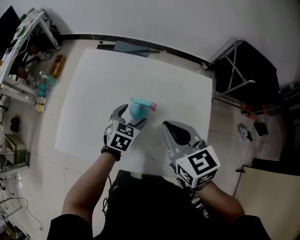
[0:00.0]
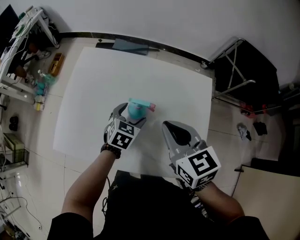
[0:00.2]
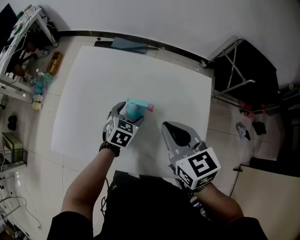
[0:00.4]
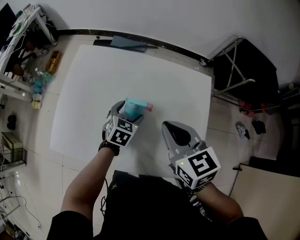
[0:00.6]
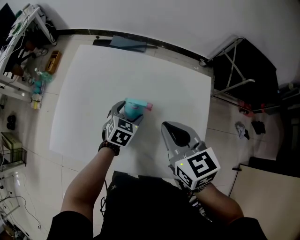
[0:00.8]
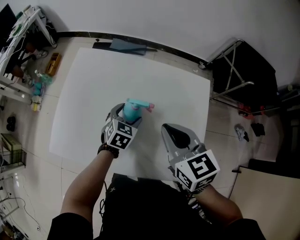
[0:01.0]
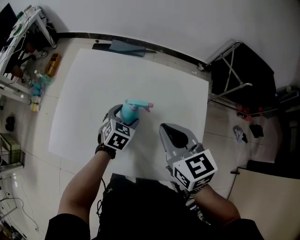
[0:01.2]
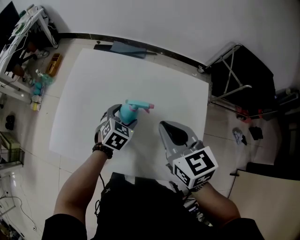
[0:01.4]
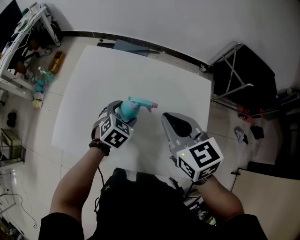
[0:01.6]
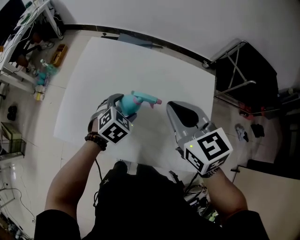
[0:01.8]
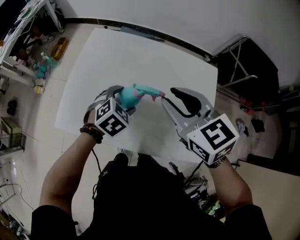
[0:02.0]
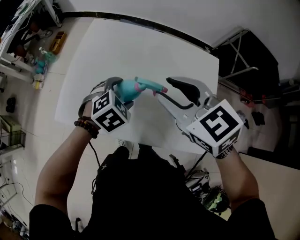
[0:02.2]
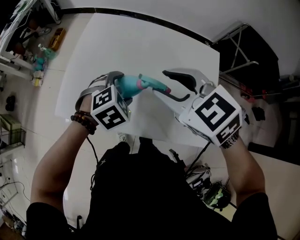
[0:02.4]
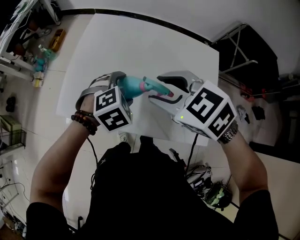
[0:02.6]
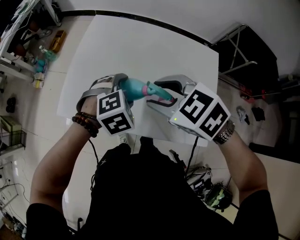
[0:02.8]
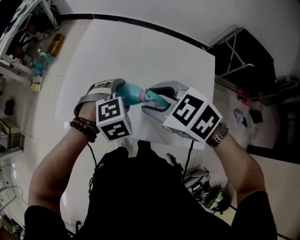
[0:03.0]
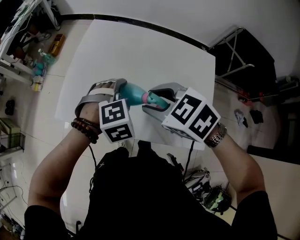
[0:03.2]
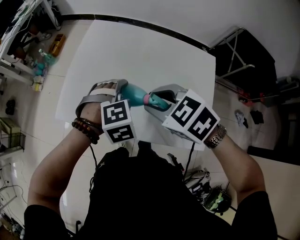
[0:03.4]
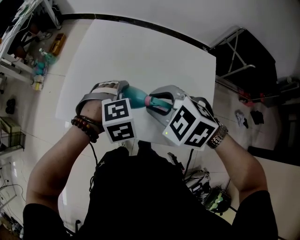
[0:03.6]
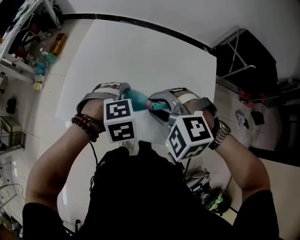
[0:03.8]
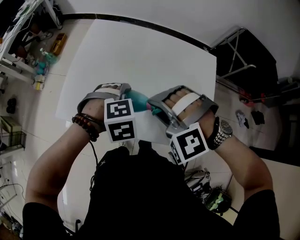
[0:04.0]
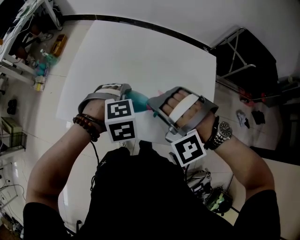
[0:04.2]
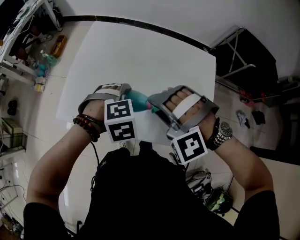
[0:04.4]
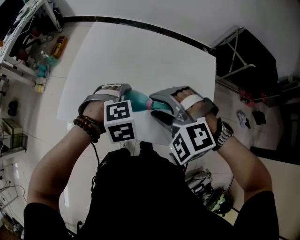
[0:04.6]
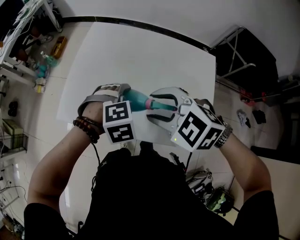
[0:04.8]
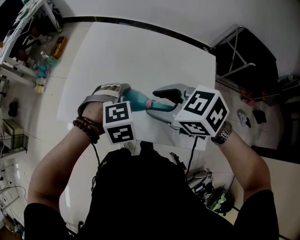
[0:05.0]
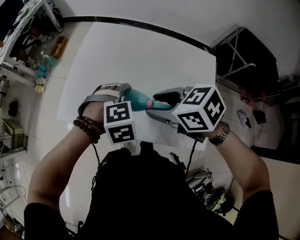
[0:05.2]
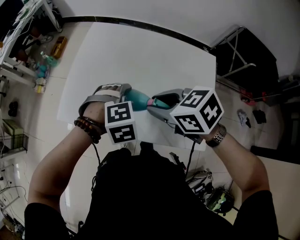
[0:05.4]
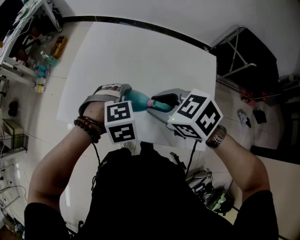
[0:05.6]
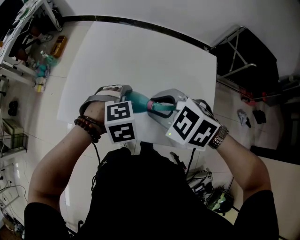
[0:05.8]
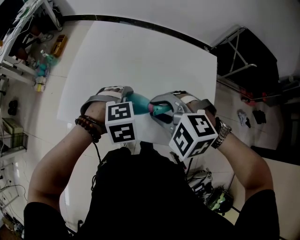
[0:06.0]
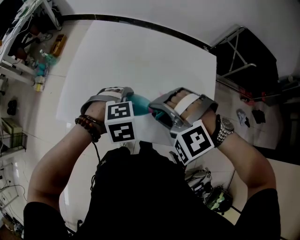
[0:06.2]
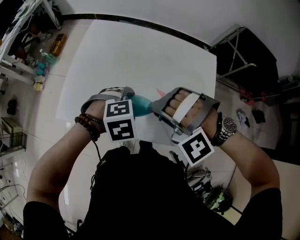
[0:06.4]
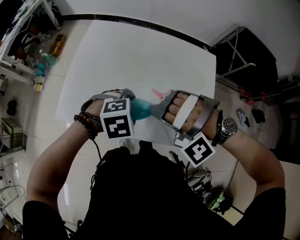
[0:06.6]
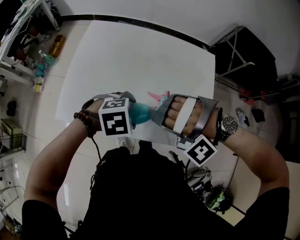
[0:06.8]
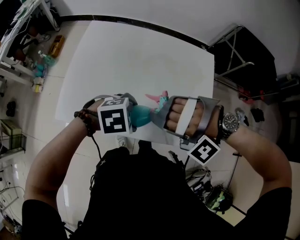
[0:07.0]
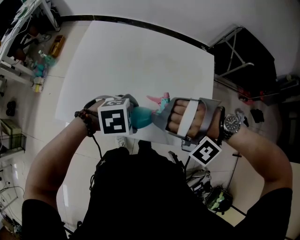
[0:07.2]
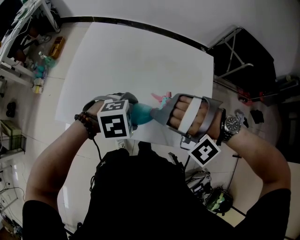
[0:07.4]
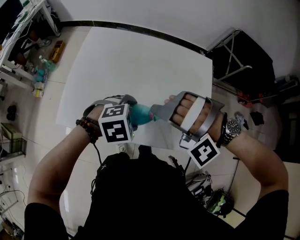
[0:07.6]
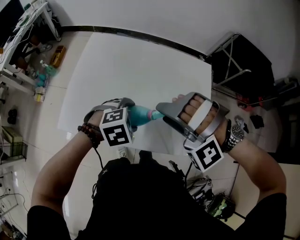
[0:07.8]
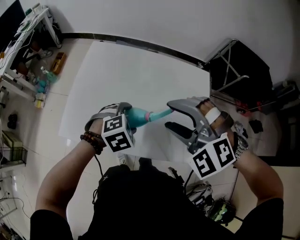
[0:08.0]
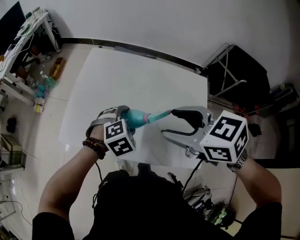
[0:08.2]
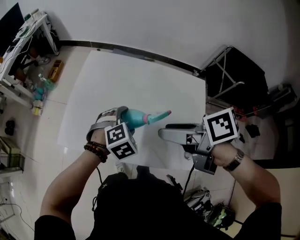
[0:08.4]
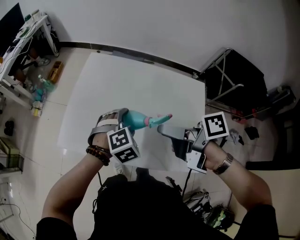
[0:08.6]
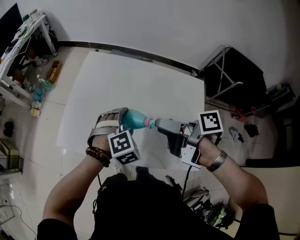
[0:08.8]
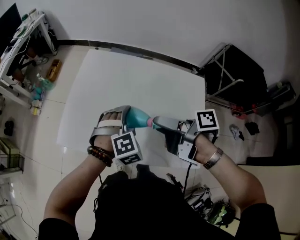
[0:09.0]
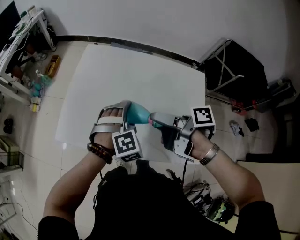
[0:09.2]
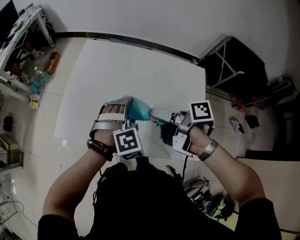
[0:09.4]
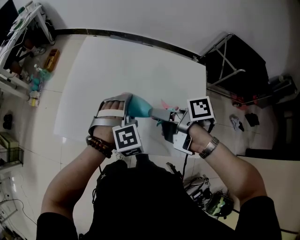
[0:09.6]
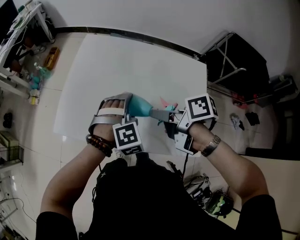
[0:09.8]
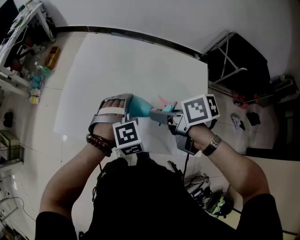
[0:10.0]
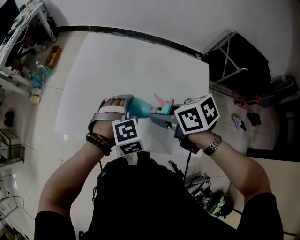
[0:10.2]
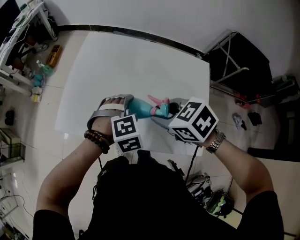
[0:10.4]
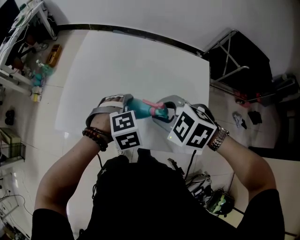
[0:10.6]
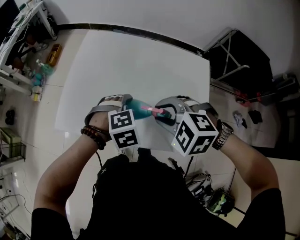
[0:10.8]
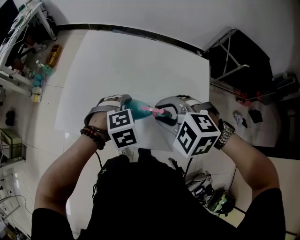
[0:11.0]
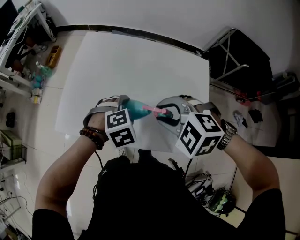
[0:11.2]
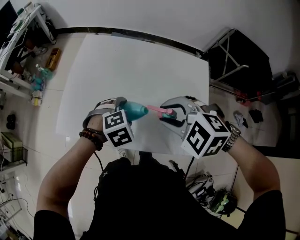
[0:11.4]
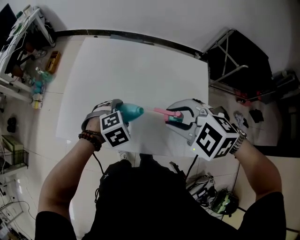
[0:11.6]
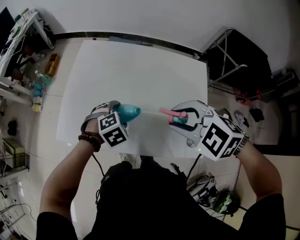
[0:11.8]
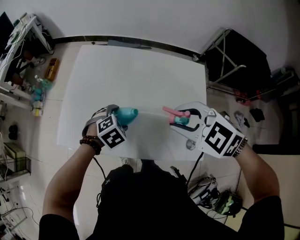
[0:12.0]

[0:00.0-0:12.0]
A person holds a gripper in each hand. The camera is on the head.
0:00.0 to 0:01.6: There are only small adjustments of the grippers.
0:01.6 to 0:03.0: The left gripper goes some 10 cm backward, to the left and upward, and swivels some 30 degrees. Meanwhile the right gripper heads to the left and backward, covering roughly 15 cm, changes its angle by roughly 40 degrees, and opens its fingers.
0:03.0 to 0:04.4: The right gripper rotates around the line of its fingers by some 70 degrees, counterclockwise from behind.
0:04.4 to 0:06.0: The right gripper changes its angle by some 40 degrees.
0:06.0 to 0:07.6: The right gripper twists roughly 50 degrees counterclockwise, seen from behind, and opens.
0:07.6 to 0:09.0: The left gripper shifts by some 10 cm, and swivels approximately 40 degrees. Meanwhile the right gripper reaches some 10 cm upward, then returns, and rotates about 170 degrees.
0:09.0 to 0:10.4: The right gripper rolls counterclockwise, seen from behind, by some 80 degrees, and closes.
0:10.4 to 0:12.0: The right gripper shifts roughly 10 cm upward and to the right, and rotates some 30 degrees. The left gripper goes some 5 cm downward.

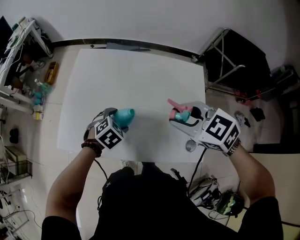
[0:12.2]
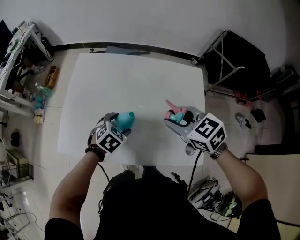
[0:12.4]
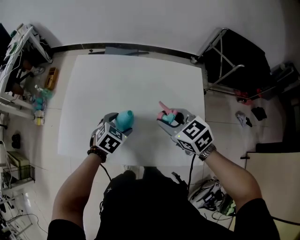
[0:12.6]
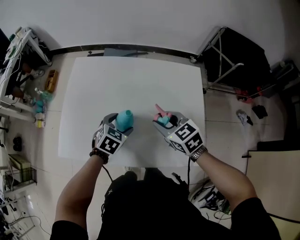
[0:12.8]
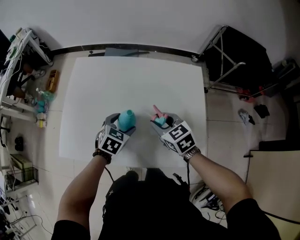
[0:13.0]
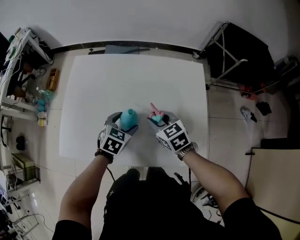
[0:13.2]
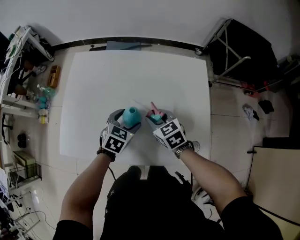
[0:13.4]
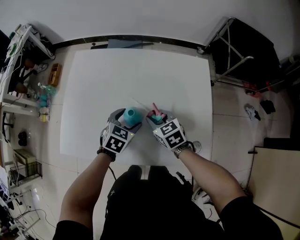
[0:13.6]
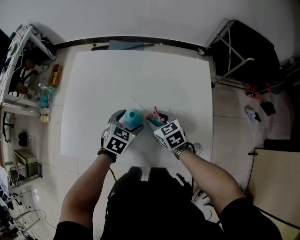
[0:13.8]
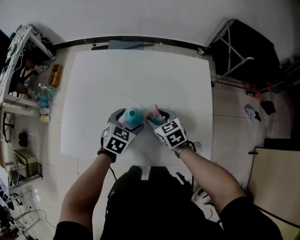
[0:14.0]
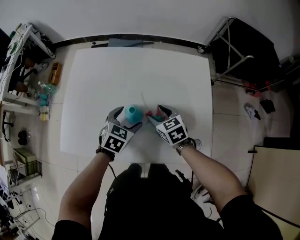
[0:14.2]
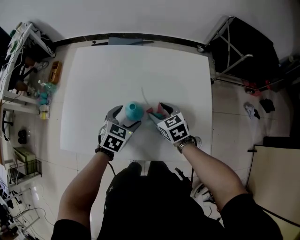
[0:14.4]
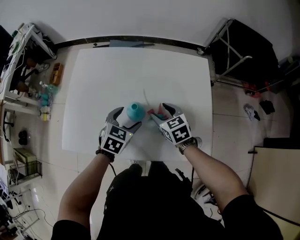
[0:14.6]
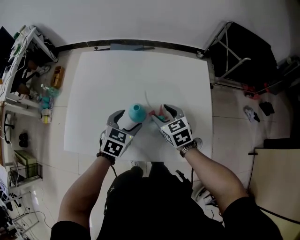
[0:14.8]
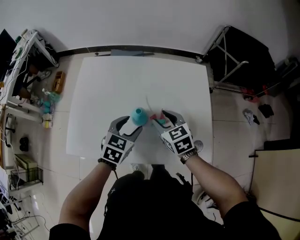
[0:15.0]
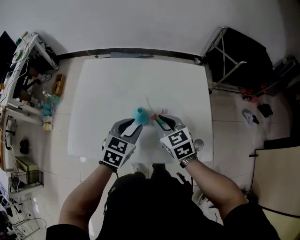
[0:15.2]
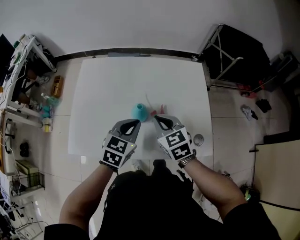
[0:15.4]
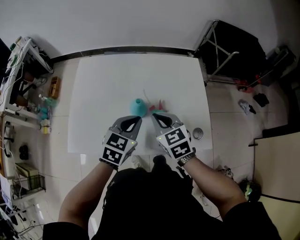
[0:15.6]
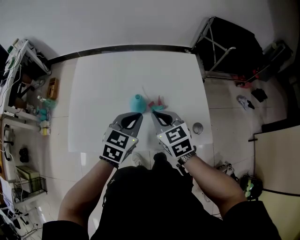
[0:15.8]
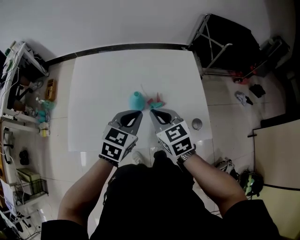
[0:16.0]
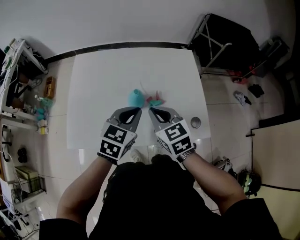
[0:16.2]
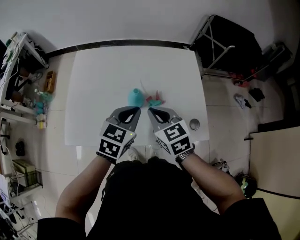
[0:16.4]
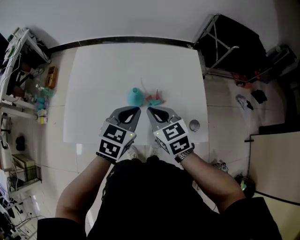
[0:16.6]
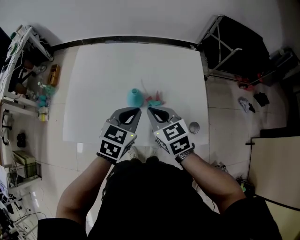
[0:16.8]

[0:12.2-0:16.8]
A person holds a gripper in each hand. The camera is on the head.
0:12.2 to 0:13.8: The left gripper shifts by some 5 cm, and changes its angle by about 20 degrees, while the right gripper is displaced downward by about 20 cm, and turns by some 30 degrees.
0:13.8 to 0:15.2: Both grippers move upward, about 10 cm. The right gripper opens, then closes again, while the left gripper closes its fingers.
0:15.2 to 0:16.8: The left gripper shifts by approximately 5 cm. Meanwhile the right gripper changes place by some 5 cm.

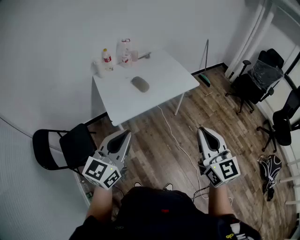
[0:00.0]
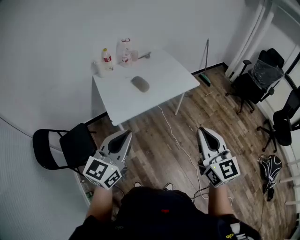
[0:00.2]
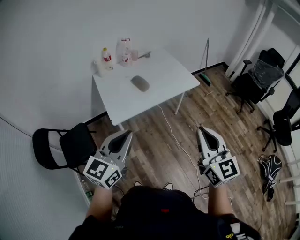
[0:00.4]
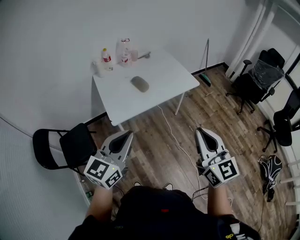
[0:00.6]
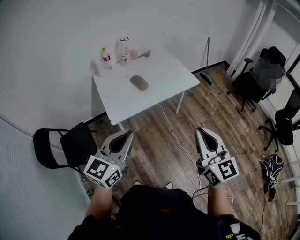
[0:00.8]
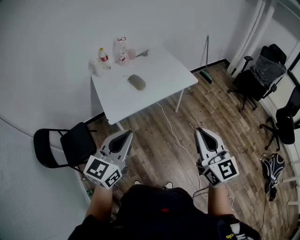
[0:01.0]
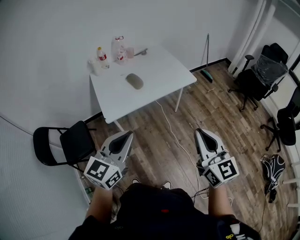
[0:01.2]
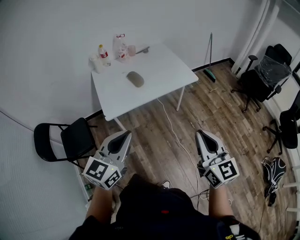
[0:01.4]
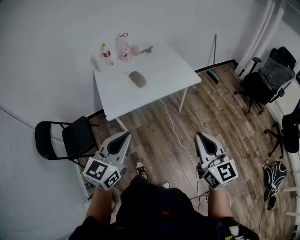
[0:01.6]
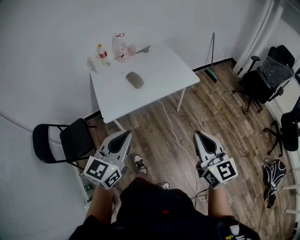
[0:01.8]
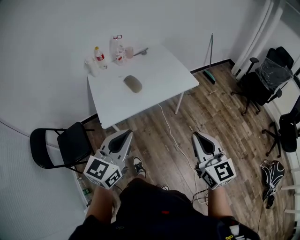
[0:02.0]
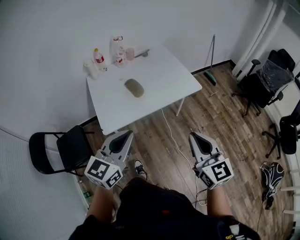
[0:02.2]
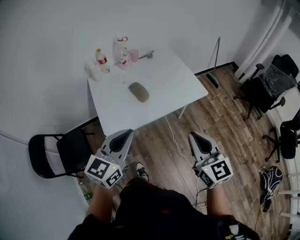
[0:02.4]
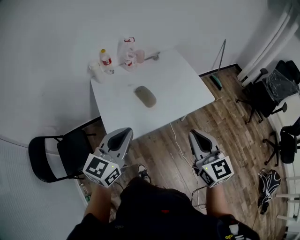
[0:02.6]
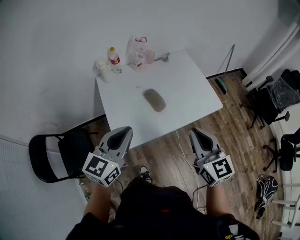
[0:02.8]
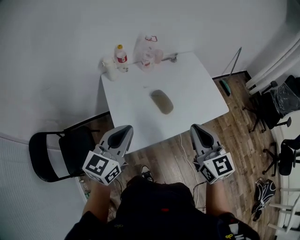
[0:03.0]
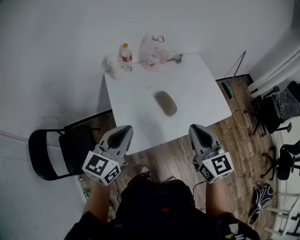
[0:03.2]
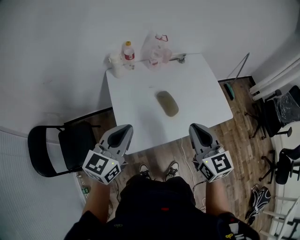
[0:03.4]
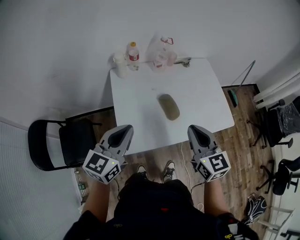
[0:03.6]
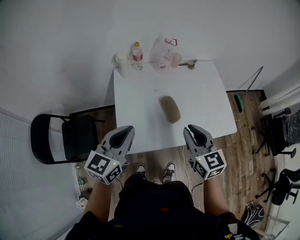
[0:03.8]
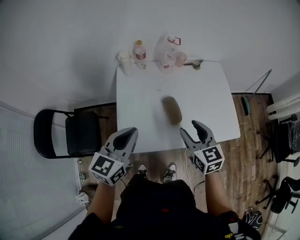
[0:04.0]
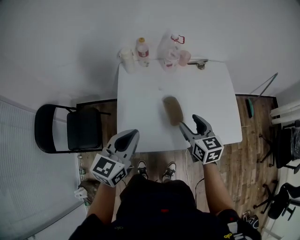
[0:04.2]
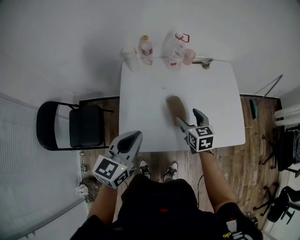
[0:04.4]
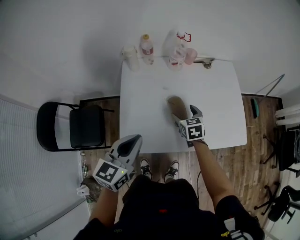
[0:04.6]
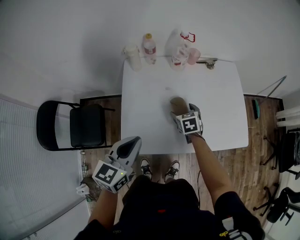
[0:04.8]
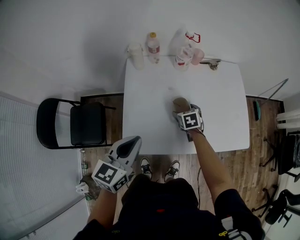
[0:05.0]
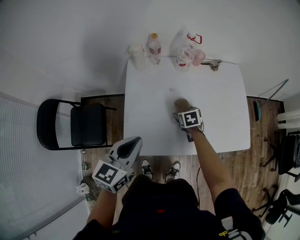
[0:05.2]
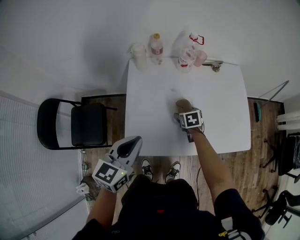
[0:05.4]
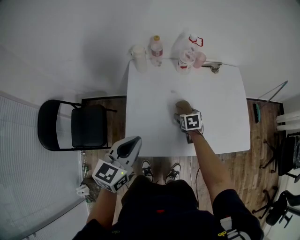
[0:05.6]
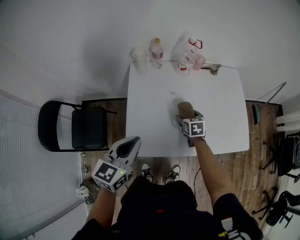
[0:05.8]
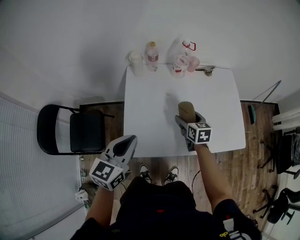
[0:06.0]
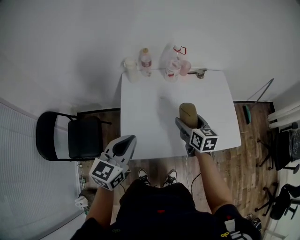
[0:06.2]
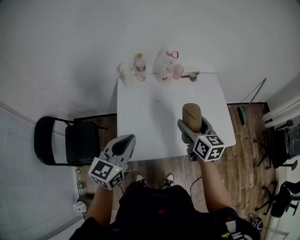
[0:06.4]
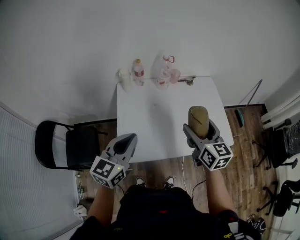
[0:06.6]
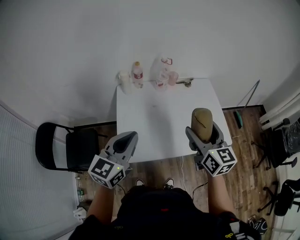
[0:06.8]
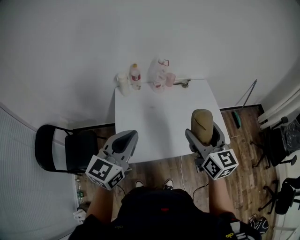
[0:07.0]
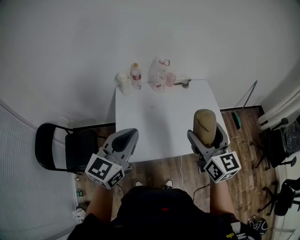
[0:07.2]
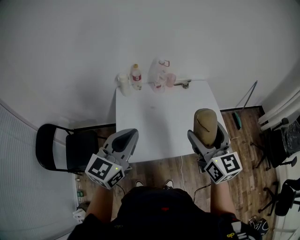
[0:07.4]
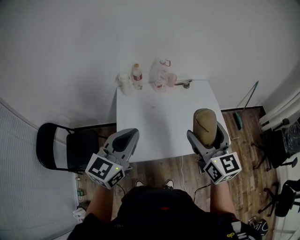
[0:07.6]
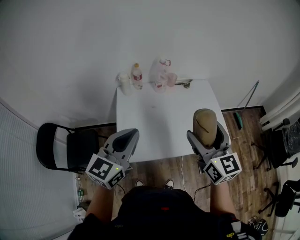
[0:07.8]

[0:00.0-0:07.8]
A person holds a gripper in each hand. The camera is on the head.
0:00.0 to 0:01.6: The right gripper goes roughly 10 cm to the right and downward. The left gripper moves to the right, roughly 10 cm.
0:01.6 to 0:03.2: Both grippers travel together forward and to the left, about 40 cm.
0:03.2 to 0:04.6: The left gripper heads to the right and downward, covering some 10 cm, while the right gripper moves downward and forward, about 35 cm, rotates roughly 30 degrees, and opens.
0:04.6 to 0:06.2: The right gripper is displaced upward by about 10 cm, and rotates roughly 20 degrees.
0:06.2 to 0:07.8: The left gripper travels upward and to the right by roughly 15 cm, while the right gripper travels upward and backward by approximately 25 cm, and changes its angle by about 30 degrees.
